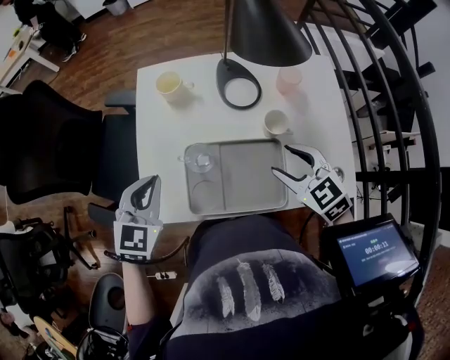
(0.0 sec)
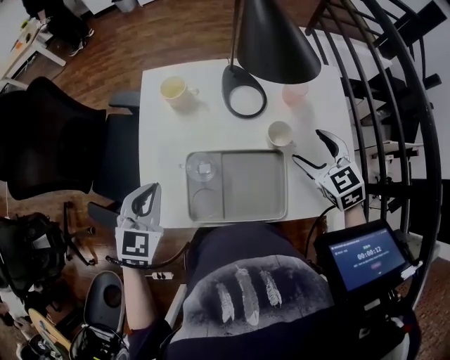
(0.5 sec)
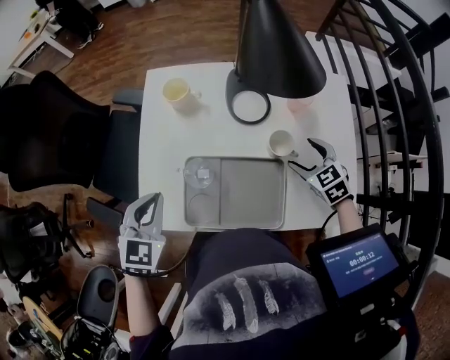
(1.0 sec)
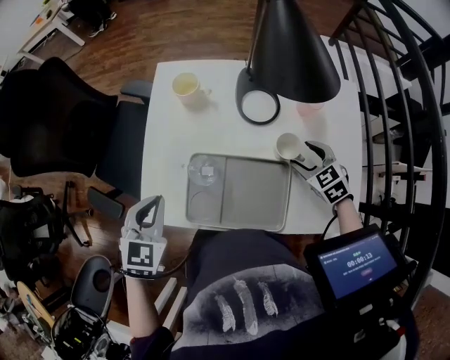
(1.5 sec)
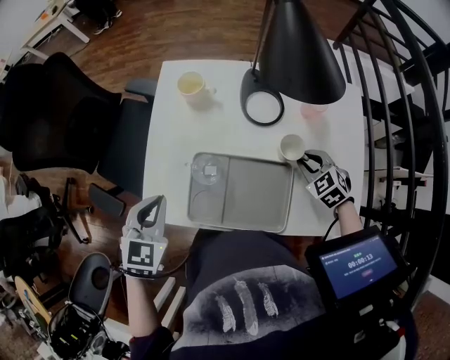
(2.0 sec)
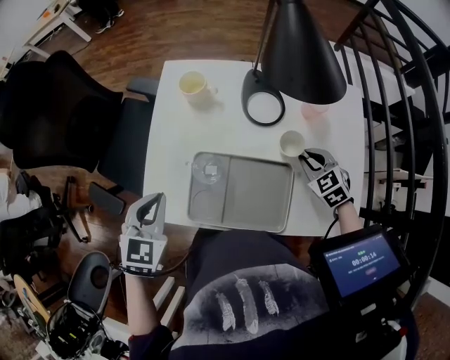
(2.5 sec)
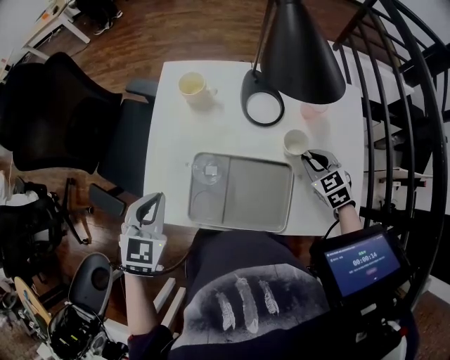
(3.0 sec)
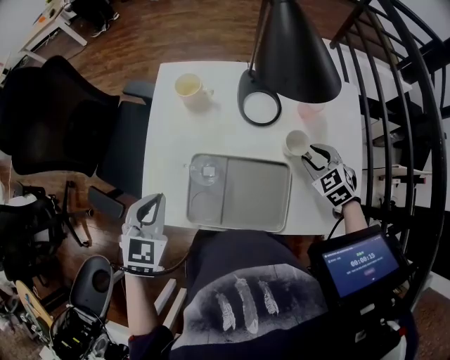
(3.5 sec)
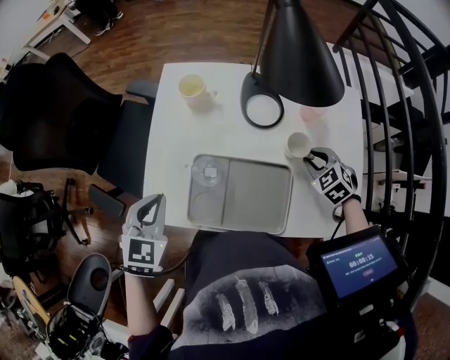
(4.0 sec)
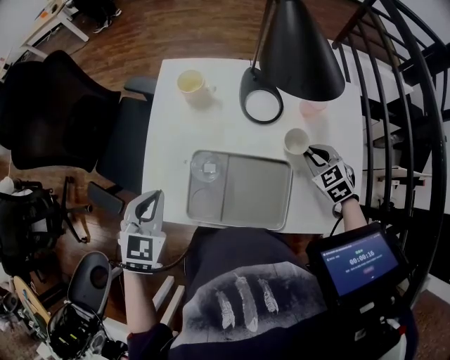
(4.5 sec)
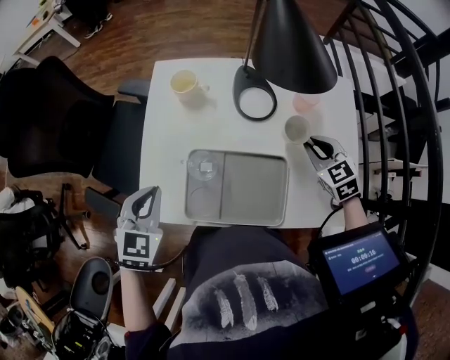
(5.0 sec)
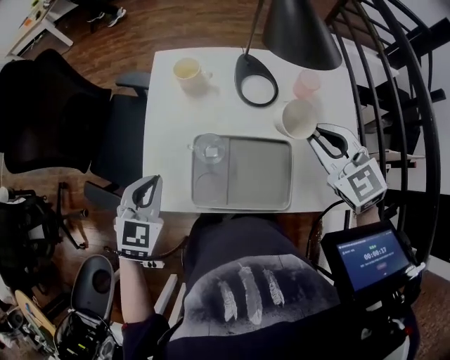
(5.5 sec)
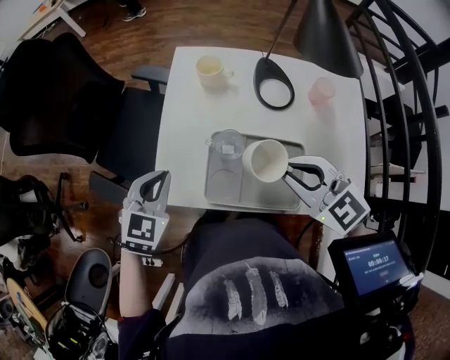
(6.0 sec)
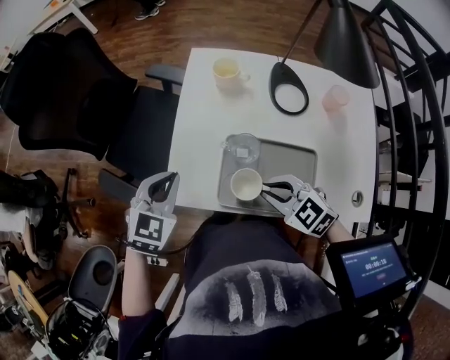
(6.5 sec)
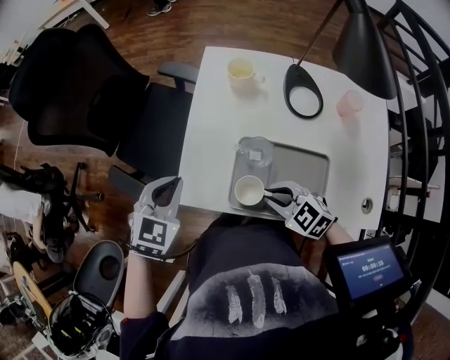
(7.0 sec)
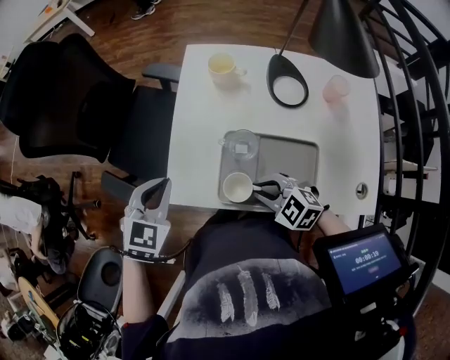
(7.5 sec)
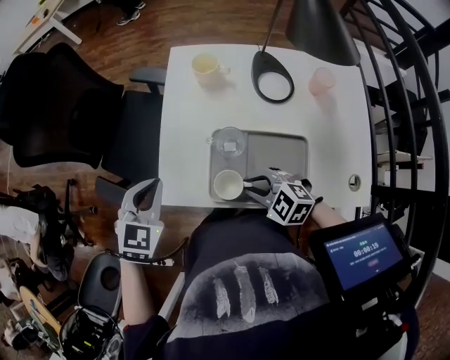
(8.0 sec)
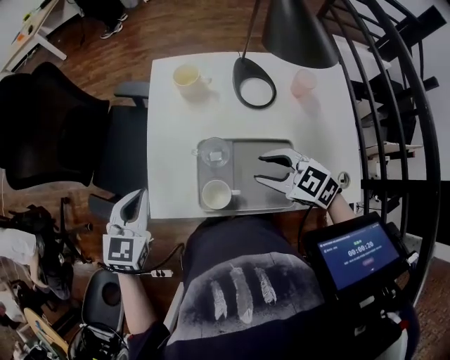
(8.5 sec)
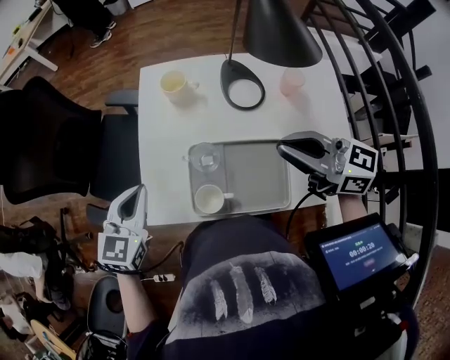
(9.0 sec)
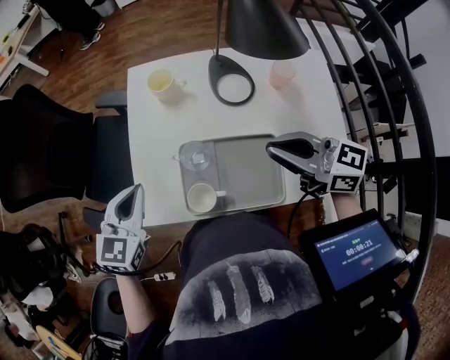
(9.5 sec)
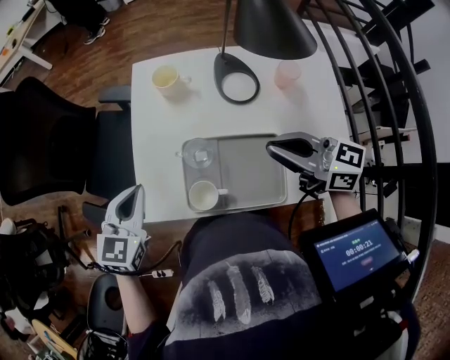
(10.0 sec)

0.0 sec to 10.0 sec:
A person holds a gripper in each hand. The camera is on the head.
0.0 sec to 2.0 sec: The right gripper goes some 15 cm downward, to the right and forward, and closes.
2.0 sec to 4.0 sec: There are only small adjustments of the grippers.
4.0 sec to 6.0 sec: The right gripper is displaced to the left, upward and backward by roughly 30 cm, and changes its angle by roughly 30 degrees.
6.0 sec to 8.0 sec: The right gripper shifts about 20 cm downward and to the left, and changes its angle by some 20 degrees.
8.0 sec to 10.0 sec: The right gripper shifts about 25 cm upward and to the right, and angles its fingers upward, by roughly 40 degrees. The left gripper moves to the right, about 5 cm.

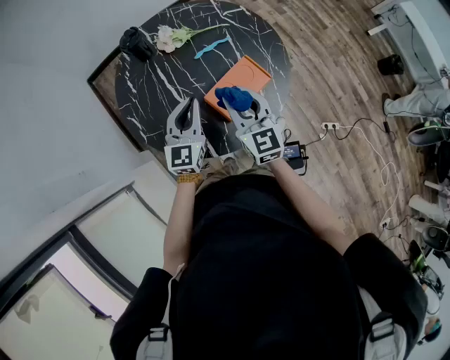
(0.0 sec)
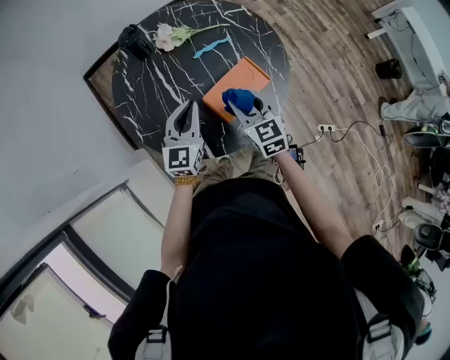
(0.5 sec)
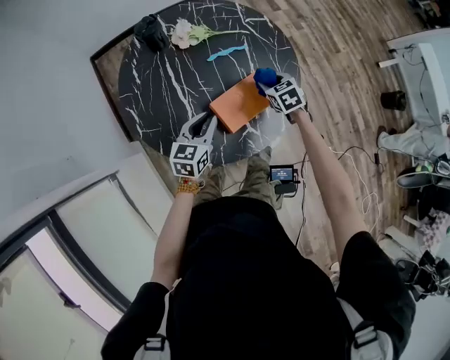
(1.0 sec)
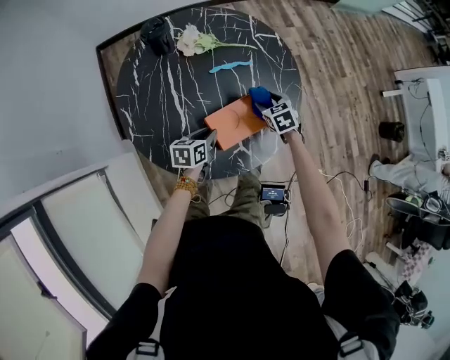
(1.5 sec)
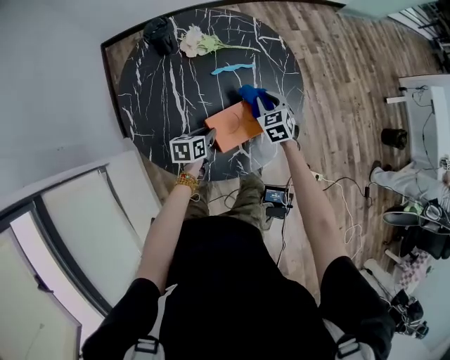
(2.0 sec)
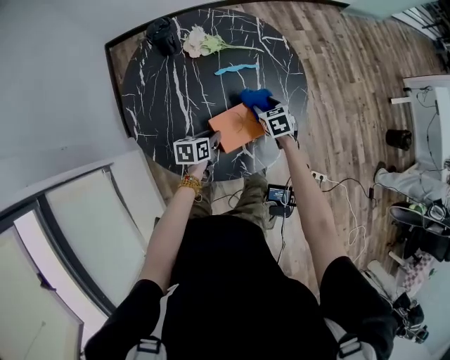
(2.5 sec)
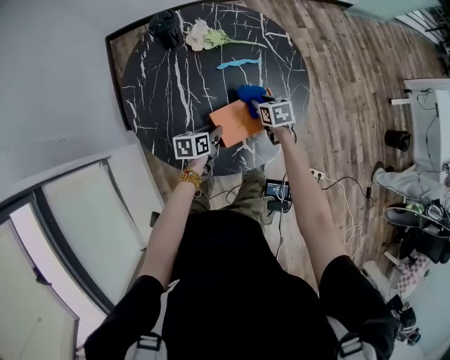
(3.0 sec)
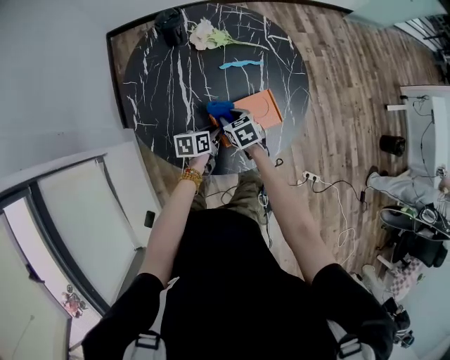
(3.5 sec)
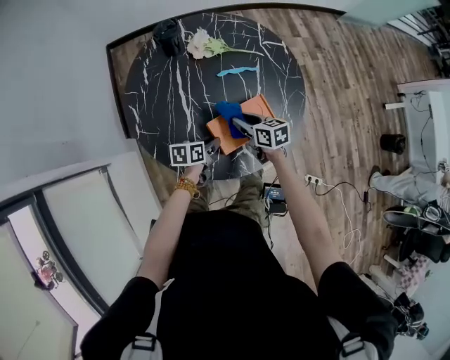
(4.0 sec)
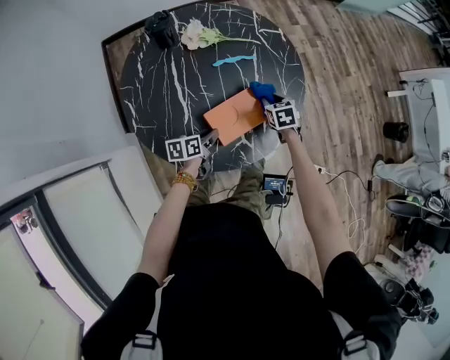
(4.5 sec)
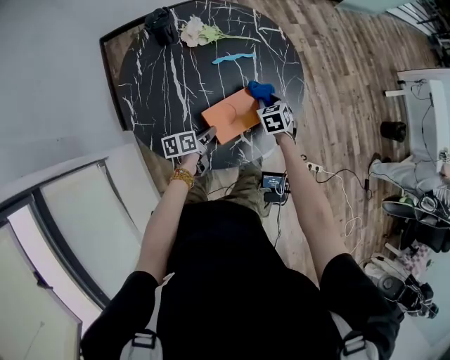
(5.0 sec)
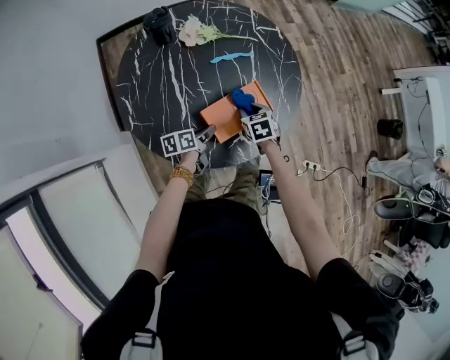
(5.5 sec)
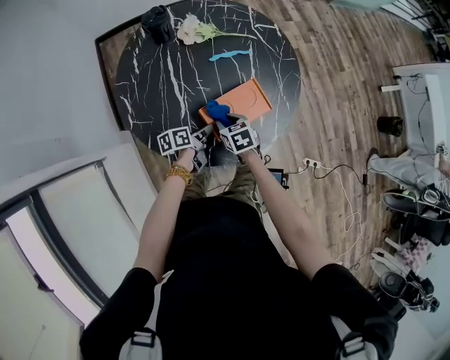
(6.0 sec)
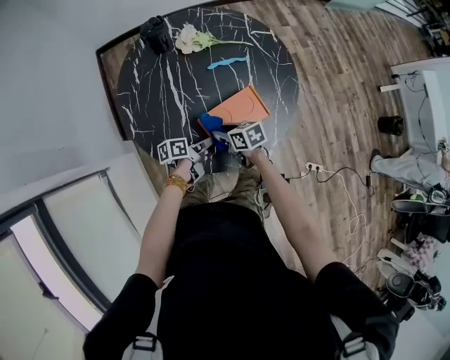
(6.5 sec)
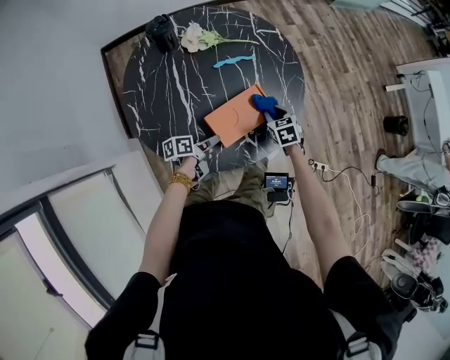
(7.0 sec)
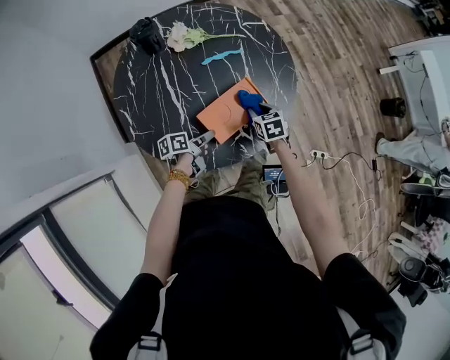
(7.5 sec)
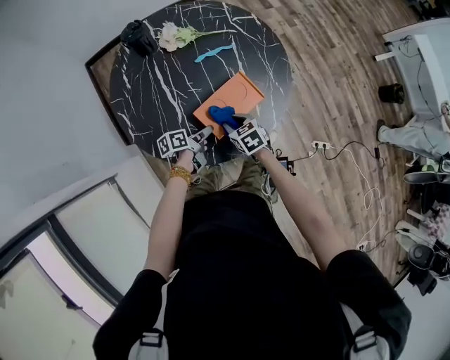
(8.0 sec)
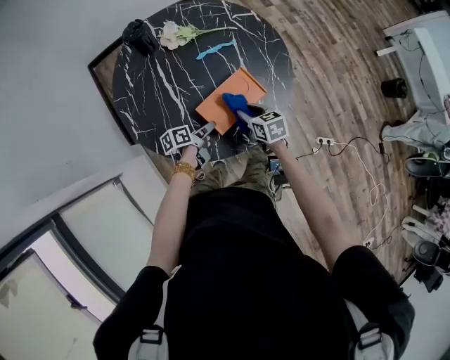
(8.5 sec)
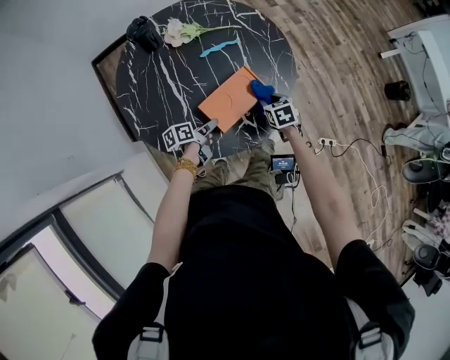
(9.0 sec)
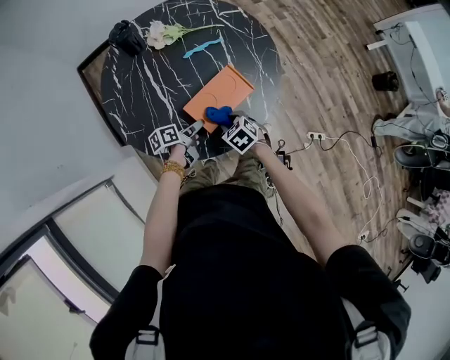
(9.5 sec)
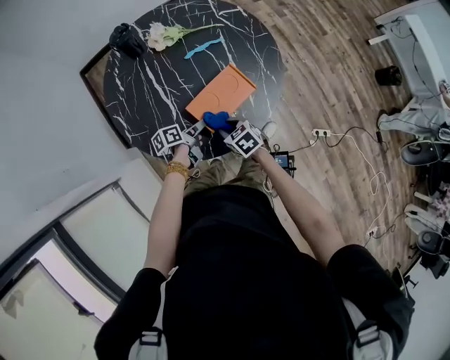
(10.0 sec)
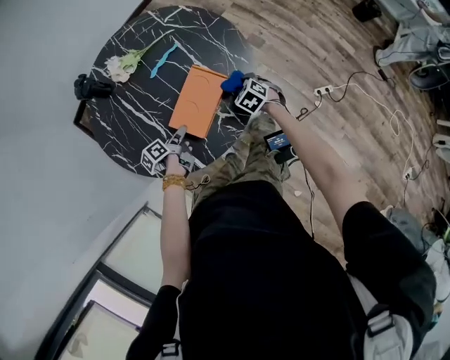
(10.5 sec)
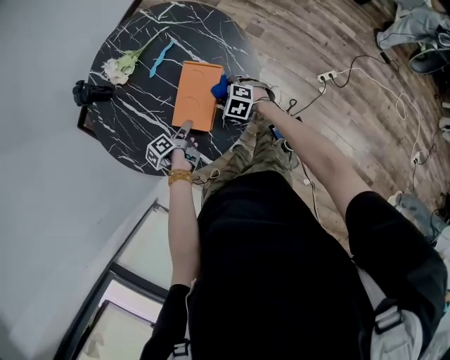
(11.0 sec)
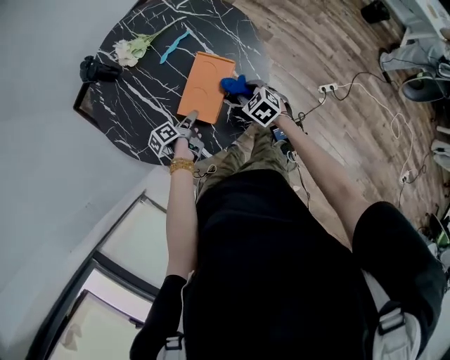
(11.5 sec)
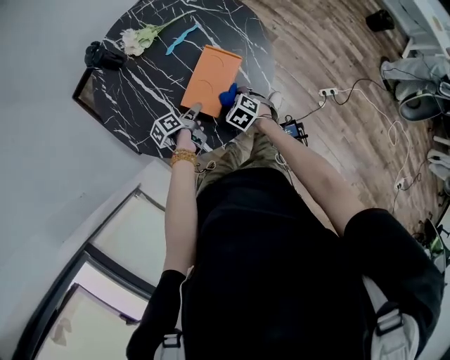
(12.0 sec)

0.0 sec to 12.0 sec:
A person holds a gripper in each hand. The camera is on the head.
0.0 sec to 2.0 sec: The left gripper shifts about 20 cm downward, and angles its fingers downward, by approximately 40 degrees. The right gripper moves downward, forward and to the right, some 25 cm, angles its fingers downward, by about 40 degrees, and opens, then closes again.
2.0 sec to 4.0 sec: The right gripper heads to the left and backward, covering approximately 10 cm, changes its angle by some 50 degrees, and opens, then closes again.
4.0 sec to 6.0 sec: The right gripper goes some 10 cm backward and downward, moves roughly 10 cm to the right and comes back, and turns by about 20 degrees.
6.0 sec to 8.0 sec: The right gripper reaches about 15 cm to the right, then returns.
8.0 sec to 10.0 sec: The right gripper travels backward by about 5 cm, and goes to the right and returns, approximately 15 cm each way.
10.0 sec to 12.0 sec: The right gripper goes to the right and returns, approximately 15 cm each way.

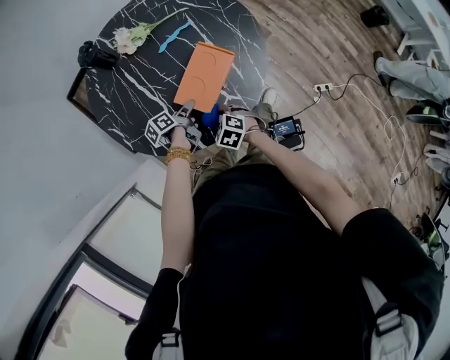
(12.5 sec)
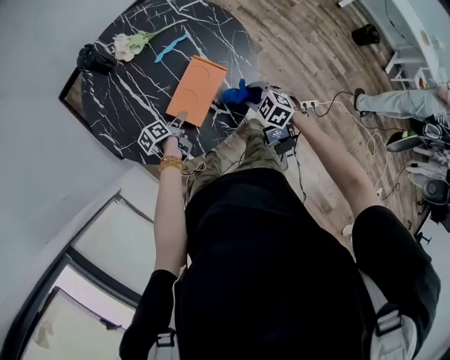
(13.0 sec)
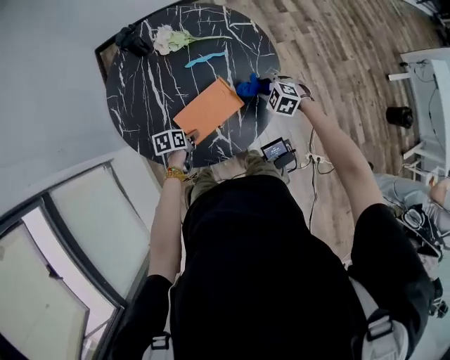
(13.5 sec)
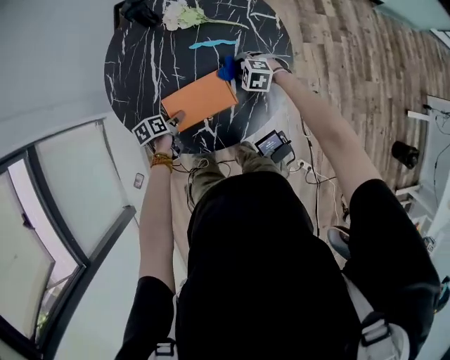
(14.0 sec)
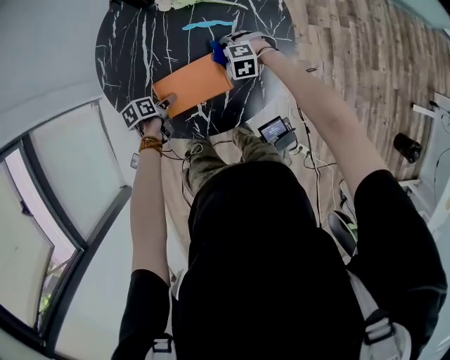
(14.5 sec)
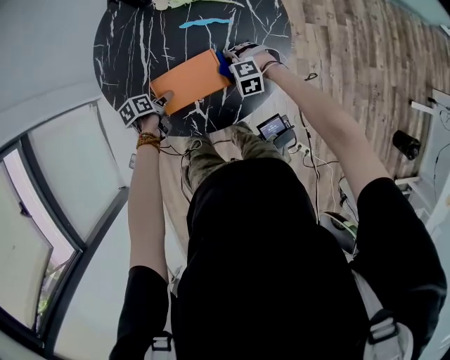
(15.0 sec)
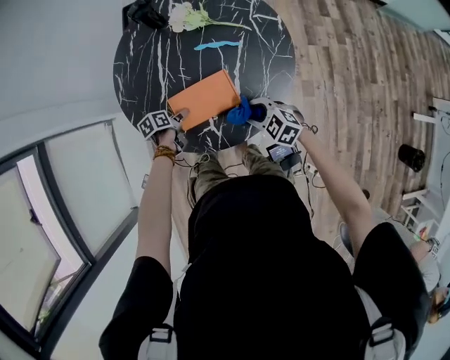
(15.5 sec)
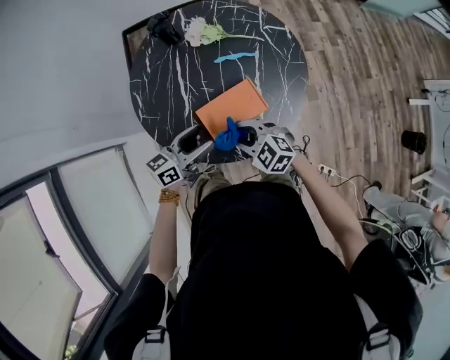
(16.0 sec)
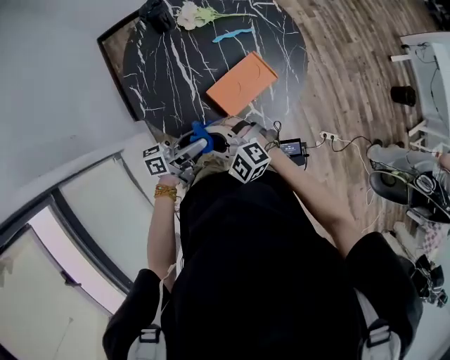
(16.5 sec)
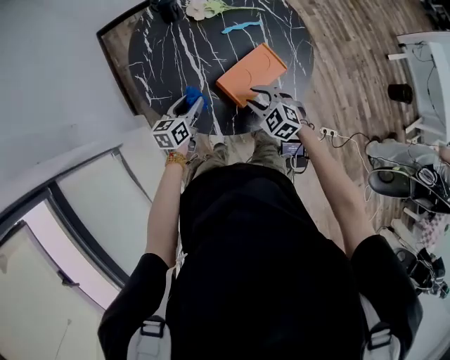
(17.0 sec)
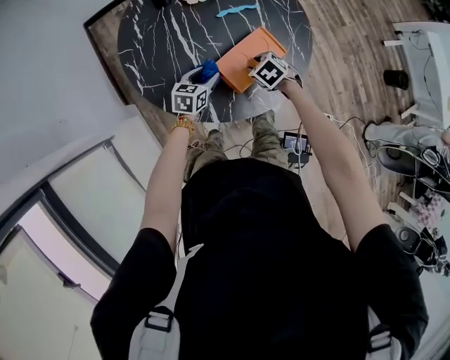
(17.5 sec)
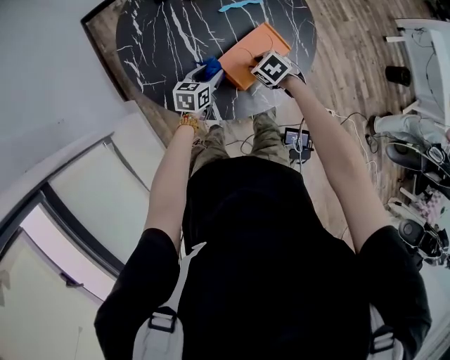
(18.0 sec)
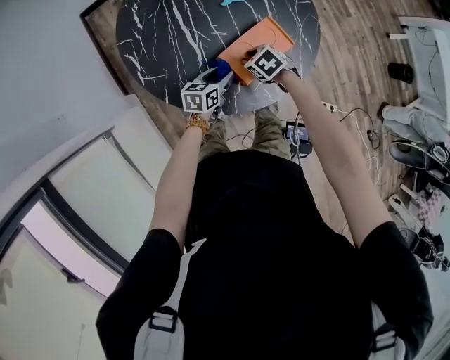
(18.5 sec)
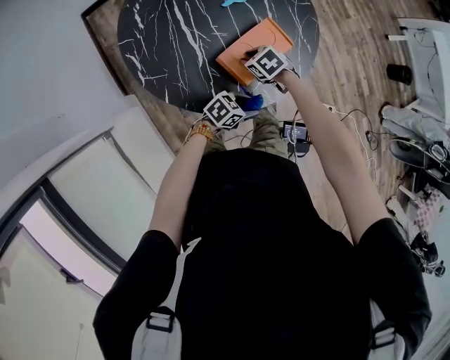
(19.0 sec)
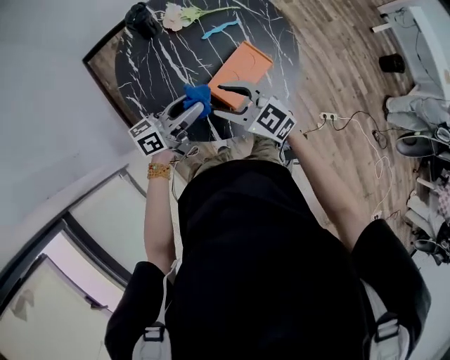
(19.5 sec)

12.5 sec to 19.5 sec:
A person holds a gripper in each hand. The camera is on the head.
12.5 sec to 14.5 sec: The right gripper moves roughly 10 cm upward and comes back, and twists roughly 70 degrees counterclockwise, seen from behind. The left gripper changes its angle by roughly 30 degrees.
14.5 sec to 16.0 sec: The left gripper is displaced upward by approximately 20 cm, and tips its fingers upward by roughly 50 degrees. Meanwhile the right gripper is displaced upward, backward and to the left by some 30 cm, and rotates some 40 degrees.
16.0 sec to 17.5 sec: The two grippers go some 15 cm downward. The left gripper swivels some 30 degrees. Meanwhile the right gripper points its fingers roughly 30 degrees further downward.
17.5 sec to 19.5 sec: Both grippers move upward, approximately 20 cm. The right gripper points its fingers about 50 degrees further upward; the left gripper tips its fingers upward by roughly 40 degrees.
